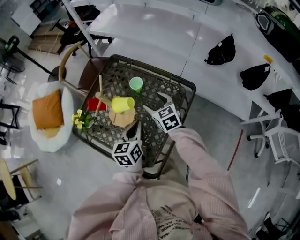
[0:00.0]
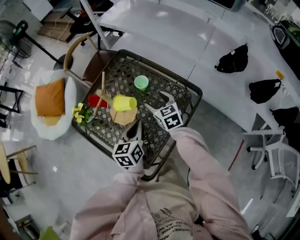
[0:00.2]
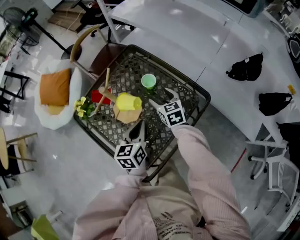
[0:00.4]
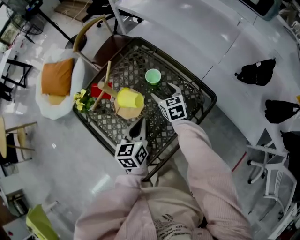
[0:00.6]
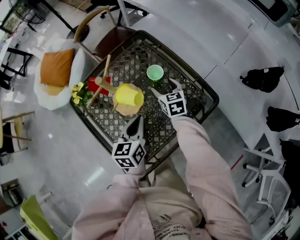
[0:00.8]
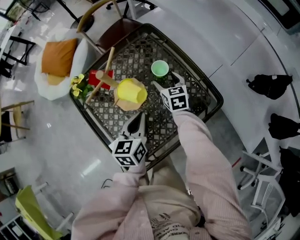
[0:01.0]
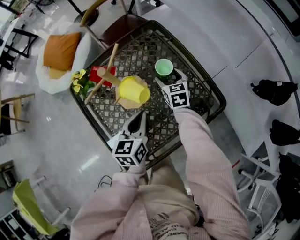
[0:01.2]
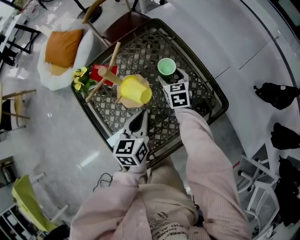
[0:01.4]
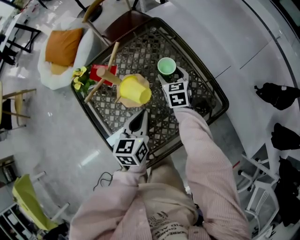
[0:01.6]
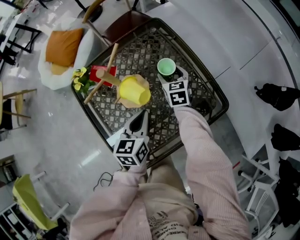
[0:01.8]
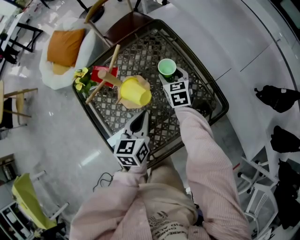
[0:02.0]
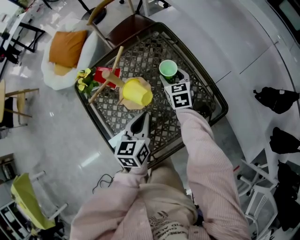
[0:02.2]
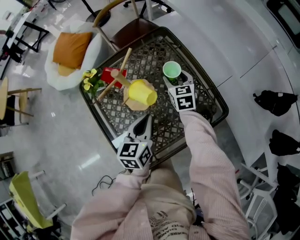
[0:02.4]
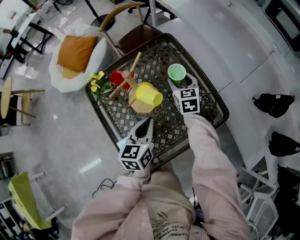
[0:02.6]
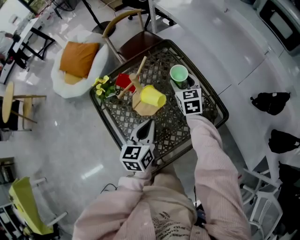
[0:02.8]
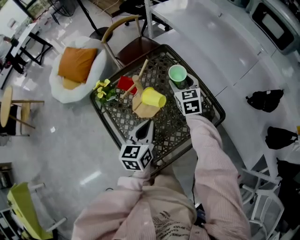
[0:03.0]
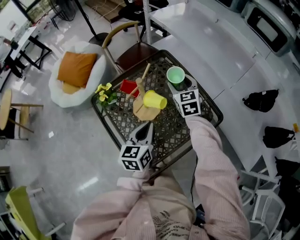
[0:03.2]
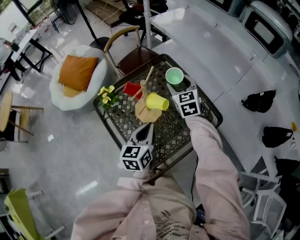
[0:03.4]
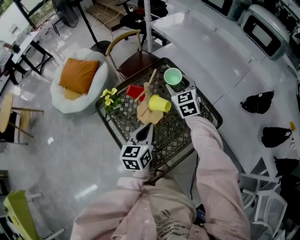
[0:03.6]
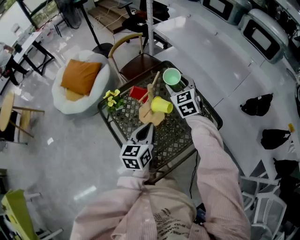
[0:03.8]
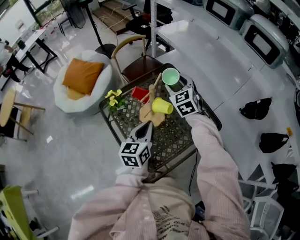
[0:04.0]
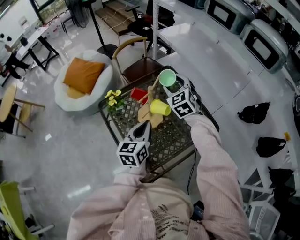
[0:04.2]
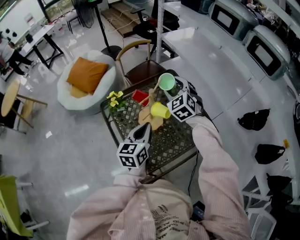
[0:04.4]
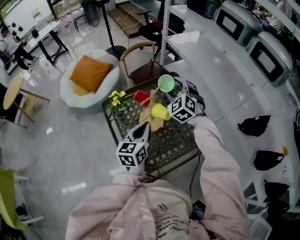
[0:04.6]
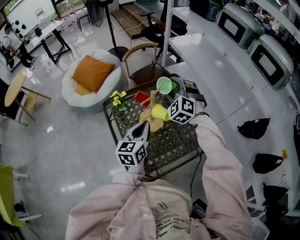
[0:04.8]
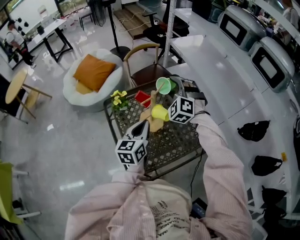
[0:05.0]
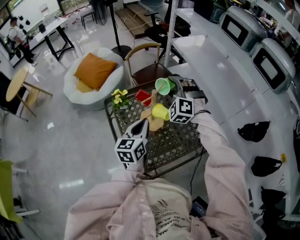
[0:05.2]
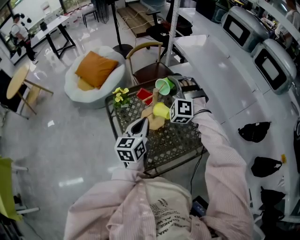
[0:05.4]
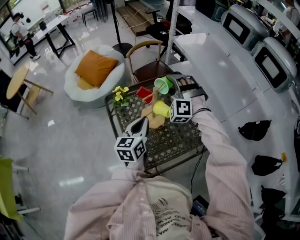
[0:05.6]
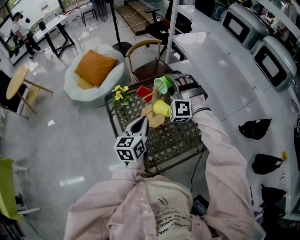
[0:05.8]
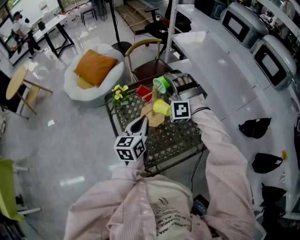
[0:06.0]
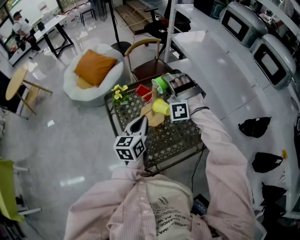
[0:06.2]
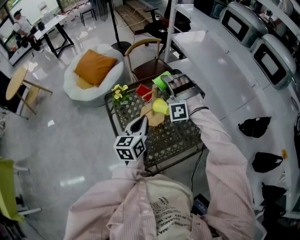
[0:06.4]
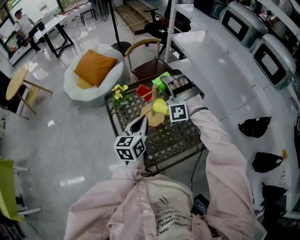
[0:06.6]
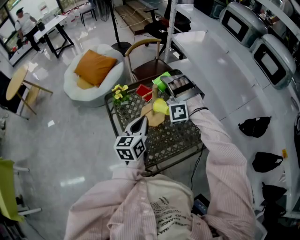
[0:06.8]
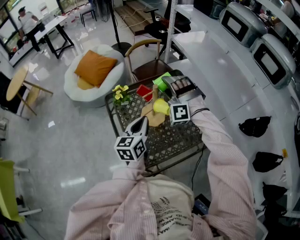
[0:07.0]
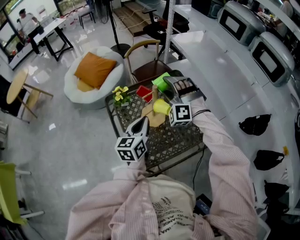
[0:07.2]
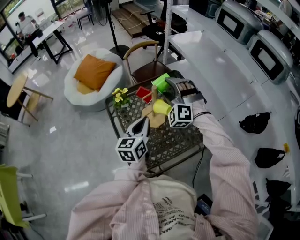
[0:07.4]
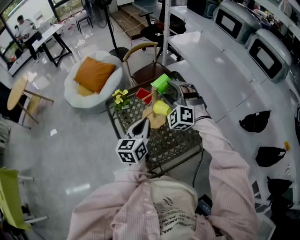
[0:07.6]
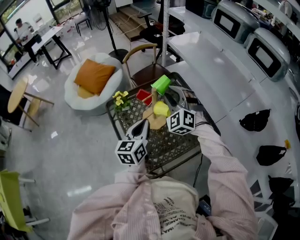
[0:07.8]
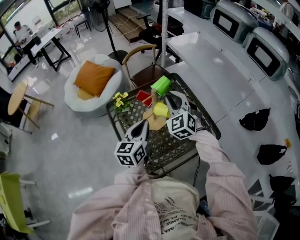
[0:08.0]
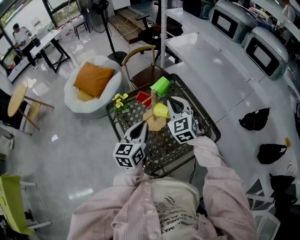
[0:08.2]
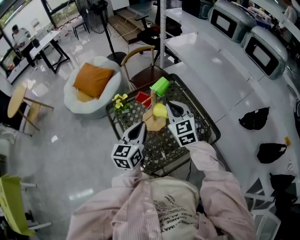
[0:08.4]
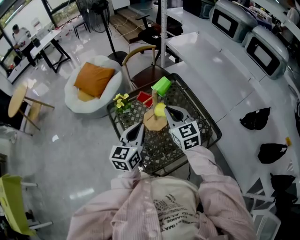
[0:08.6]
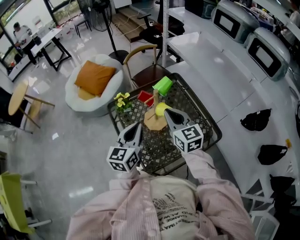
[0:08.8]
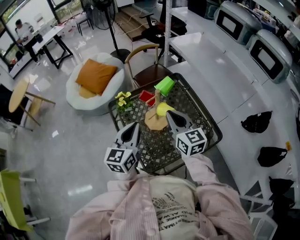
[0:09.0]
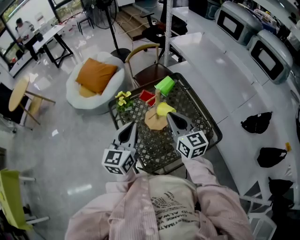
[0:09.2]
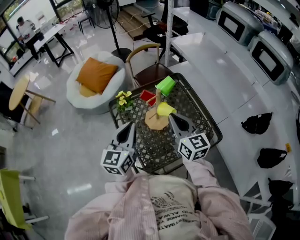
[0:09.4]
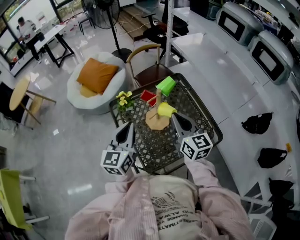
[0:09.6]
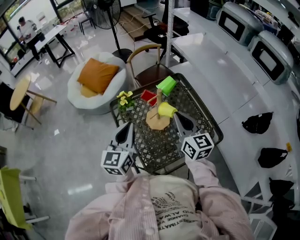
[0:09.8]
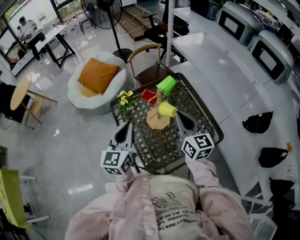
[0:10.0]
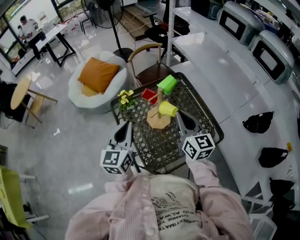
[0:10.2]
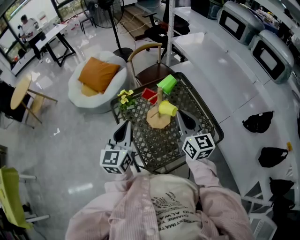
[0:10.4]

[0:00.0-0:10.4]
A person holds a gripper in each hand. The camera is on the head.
0:00.0 to 0:01.4: The right gripper shifts roughly 15 cm forward and downward, while the left gripper changes place by approximately 5 cm, and swivels some 20 degrees.
0:01.4 to 0:03.0: The left gripper shifts roughly 10 cm upward, while the right gripper is displaced upward by about 15 cm.
0:03.0 to 0:04.4: The left gripper is displaced upward by approximately 5 cm. Meanwhile the right gripper shifts approximately 15 cm upward and to the left, and swivels roughly 40 degrees.
0:04.4 to 0:06.0: The right gripper changes place by about 5 cm, and rolls counterclockwise, seen from behind, by roughly 60 degrees.
0:06.0 to 0:07.4: The grippers make only small movements.
0:07.4 to 0:09.0: The right gripper goes about 10 cm backward, rotates around the line of its fingers by approximately 80 degrees, clockwise from behind, and closes; the left gripper is displaced to the left and upward by about 5 cm.
0:09.0 to 0:10.4: The grippers make only small movements.

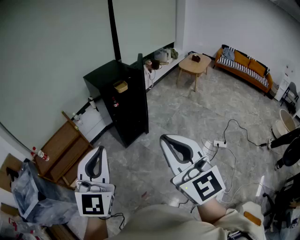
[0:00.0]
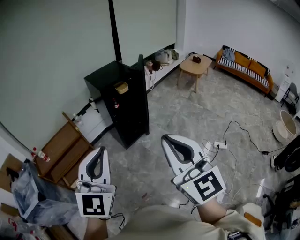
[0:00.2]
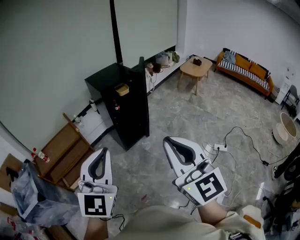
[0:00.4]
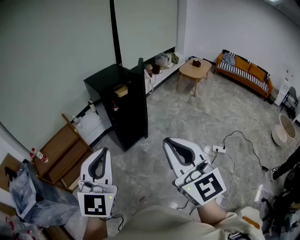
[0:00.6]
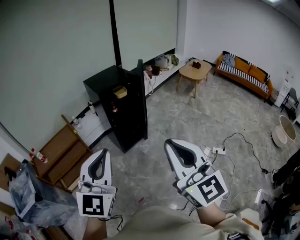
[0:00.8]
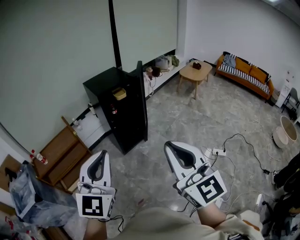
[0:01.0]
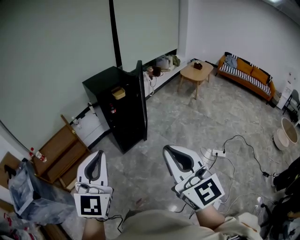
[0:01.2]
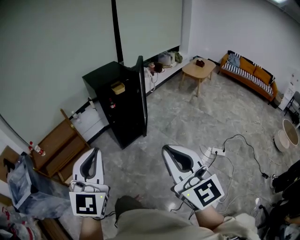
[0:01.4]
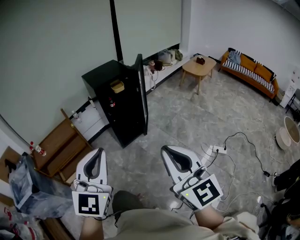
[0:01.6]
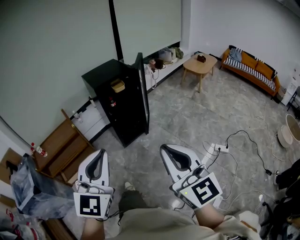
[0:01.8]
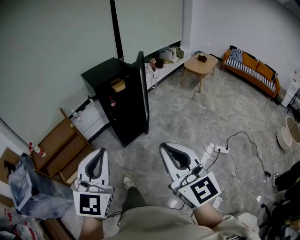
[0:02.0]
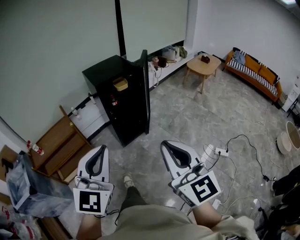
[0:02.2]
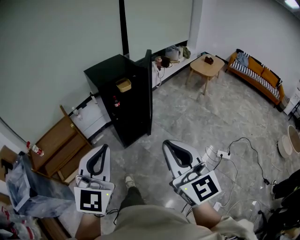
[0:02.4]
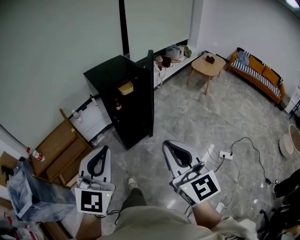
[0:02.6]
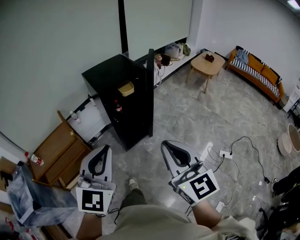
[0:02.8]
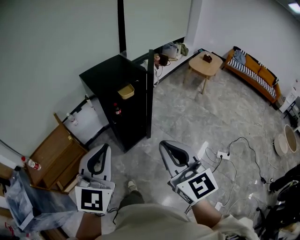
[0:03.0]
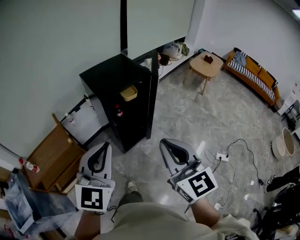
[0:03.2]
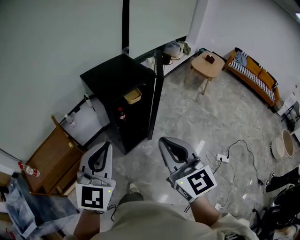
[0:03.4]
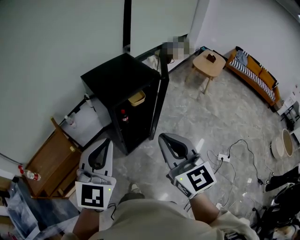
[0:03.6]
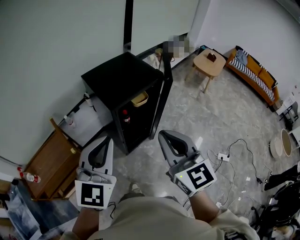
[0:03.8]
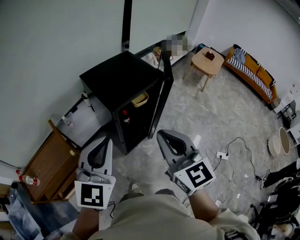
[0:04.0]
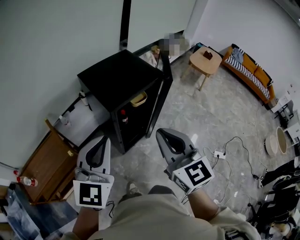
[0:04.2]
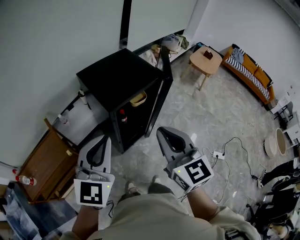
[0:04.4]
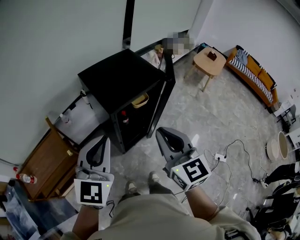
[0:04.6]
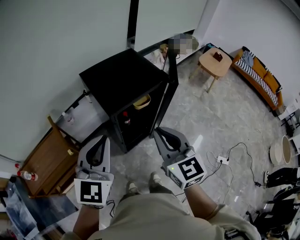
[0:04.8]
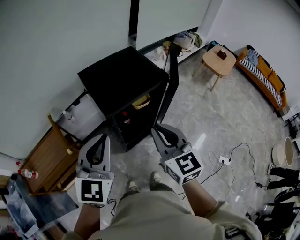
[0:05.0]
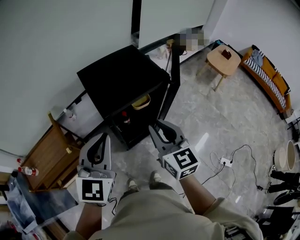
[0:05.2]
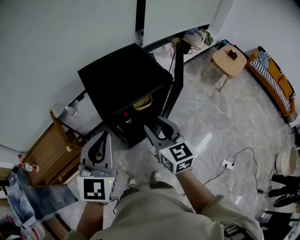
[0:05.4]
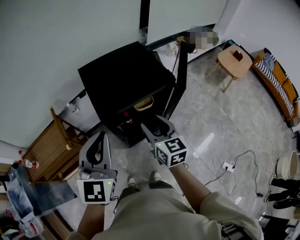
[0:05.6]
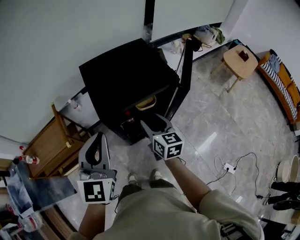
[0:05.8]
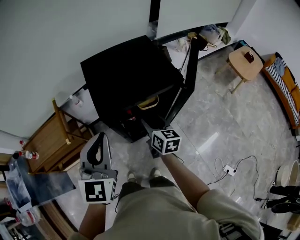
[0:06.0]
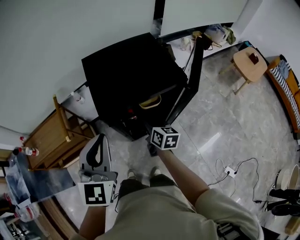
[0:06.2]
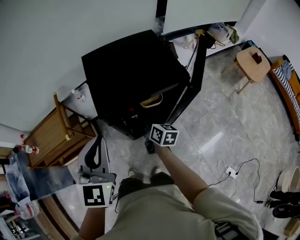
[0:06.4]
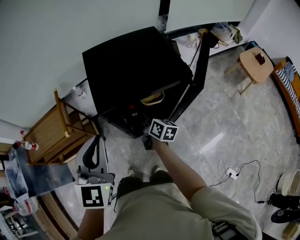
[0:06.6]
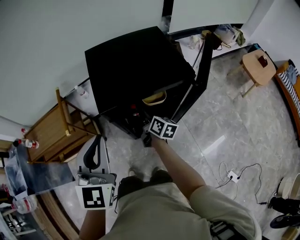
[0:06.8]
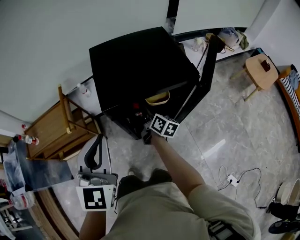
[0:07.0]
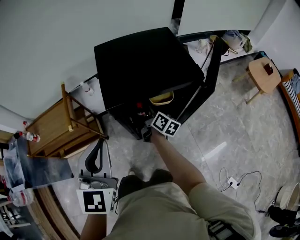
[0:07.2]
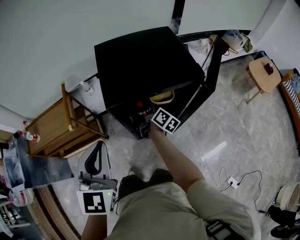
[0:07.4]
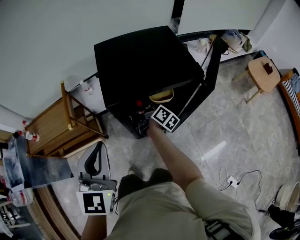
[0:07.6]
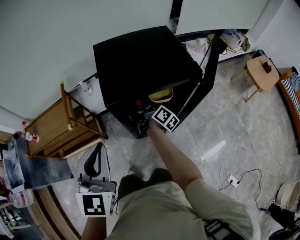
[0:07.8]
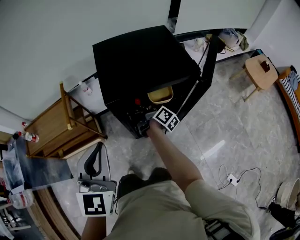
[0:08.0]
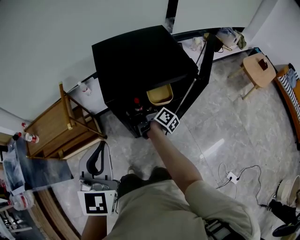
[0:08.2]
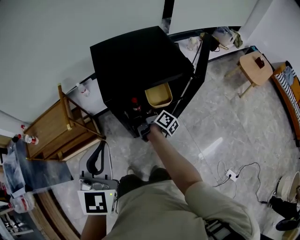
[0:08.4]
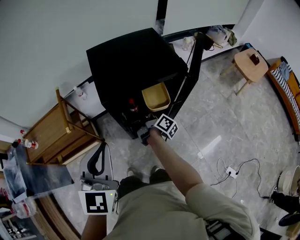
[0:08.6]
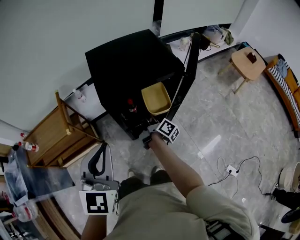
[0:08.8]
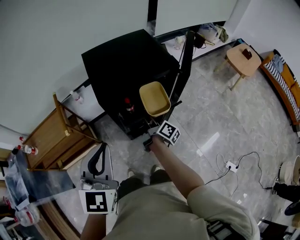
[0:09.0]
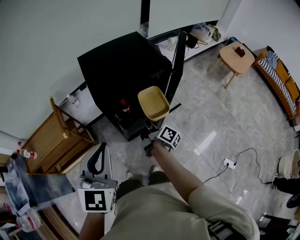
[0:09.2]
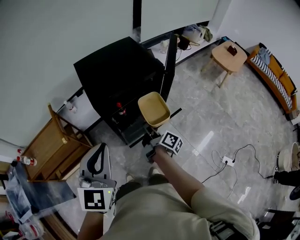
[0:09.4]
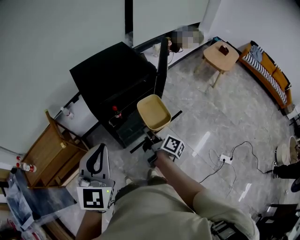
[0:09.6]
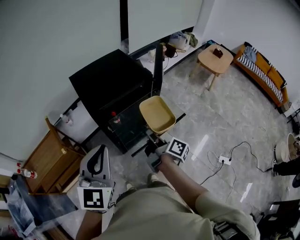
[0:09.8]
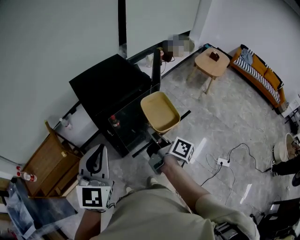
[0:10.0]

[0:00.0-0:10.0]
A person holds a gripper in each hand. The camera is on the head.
0:00.0 to 0:01.4: Both grippers move to the right, roughly 10 cm.
0:01.4 to 0:02.8: The two grippers go approximately 25 cm forward.
0:02.8 to 0:04.2: Both grippers travel together forward and to the left, approximately 30 cm.
0:04.2 to 0:05.8: The left gripper heads forward, to the right and downward, covering about 15 cm, and changes its angle by about 20 degrees. The right gripper travels forward and downward by approximately 30 cm, rotates about 30 degrees, and opens its fingers.
0:05.8 to 0:07.2: The right gripper shifts some 20 cm downward and forward, rotates approximately 30 degrees, and closes its fingers, while the left gripper moves downward, some 5 cm.
0:07.2 to 0:08.6: The grippers both shift backward by roughly 5 cm. The right gripper rotates approximately 30 degrees.
0:08.6 to 0:10.0: The right gripper is displaced upward, backward and to the right by roughly 30 cm. Meanwhile the left gripper heads upward, covering about 5 cm.

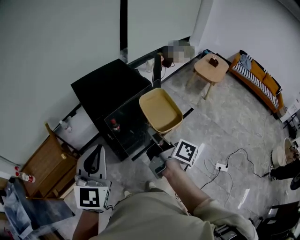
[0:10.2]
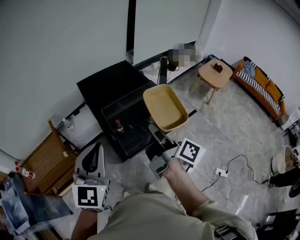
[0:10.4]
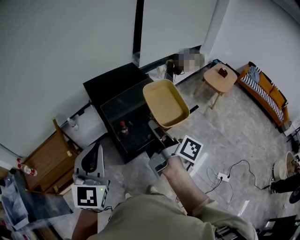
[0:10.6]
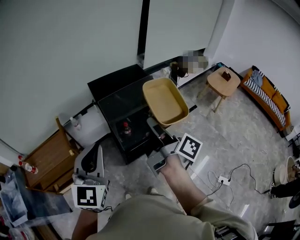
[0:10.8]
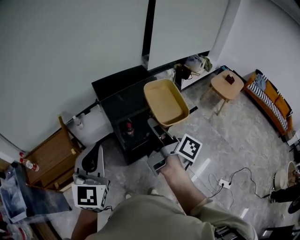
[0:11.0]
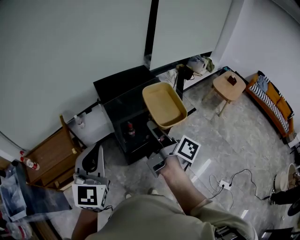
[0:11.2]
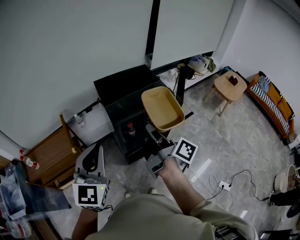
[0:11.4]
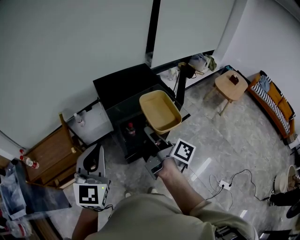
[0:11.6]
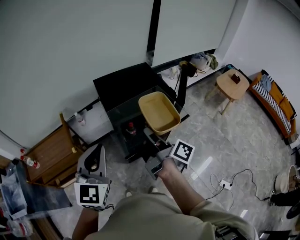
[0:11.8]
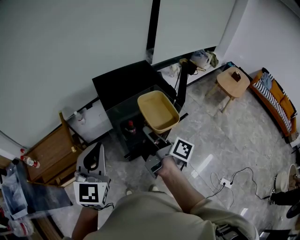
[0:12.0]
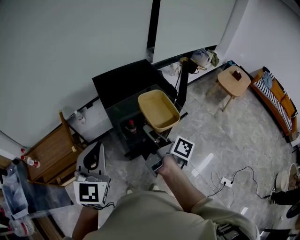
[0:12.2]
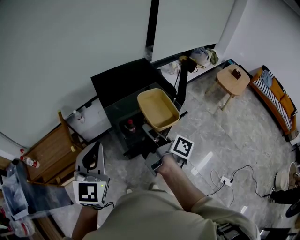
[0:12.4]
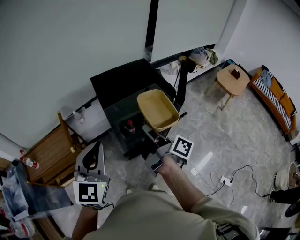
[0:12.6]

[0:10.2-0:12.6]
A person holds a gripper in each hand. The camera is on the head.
0:10.2 to 0:11.4: The right gripper moves to the left and forward, about 10 cm. Meanwhile the left gripper moves to the left, some 5 cm.
0:11.4 to 0:12.6: The right gripper shifts by roughly 5 cm.
